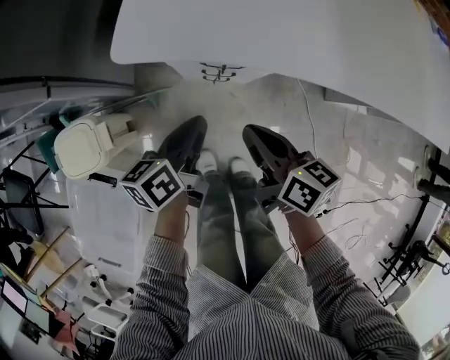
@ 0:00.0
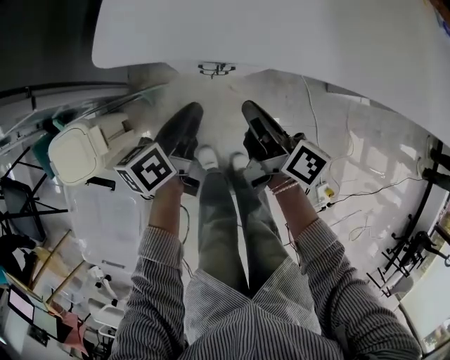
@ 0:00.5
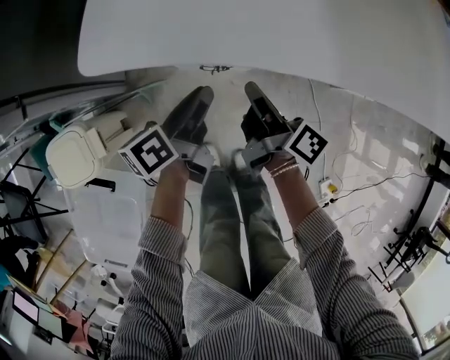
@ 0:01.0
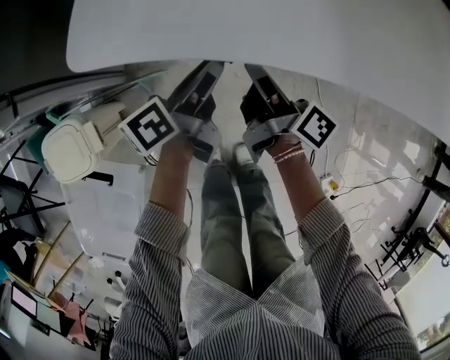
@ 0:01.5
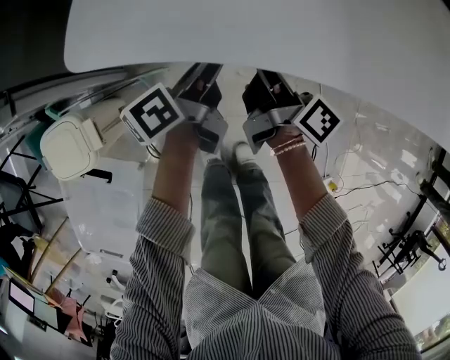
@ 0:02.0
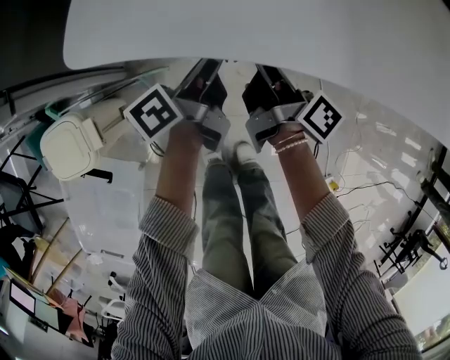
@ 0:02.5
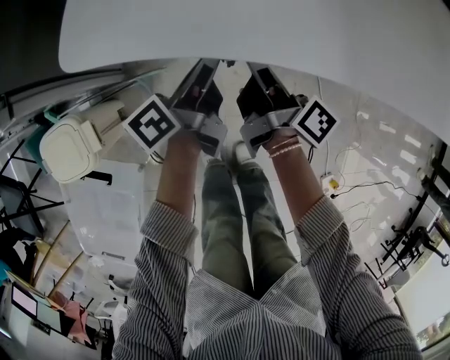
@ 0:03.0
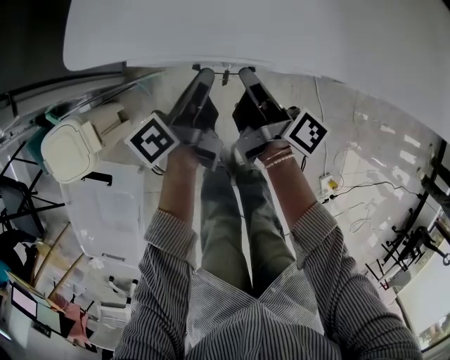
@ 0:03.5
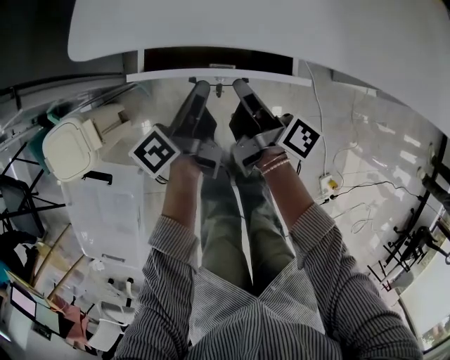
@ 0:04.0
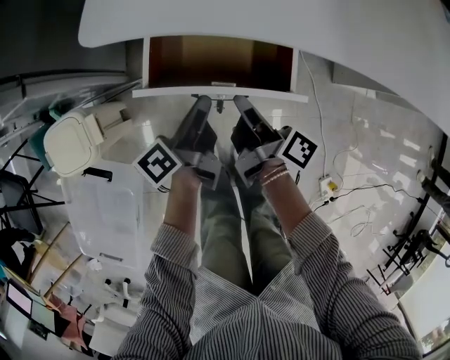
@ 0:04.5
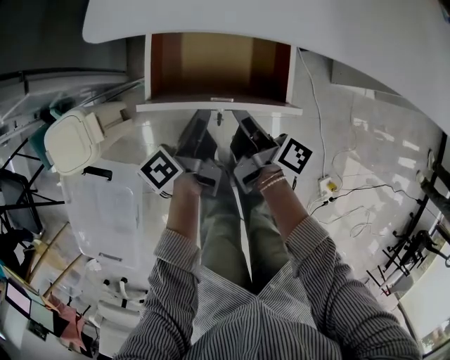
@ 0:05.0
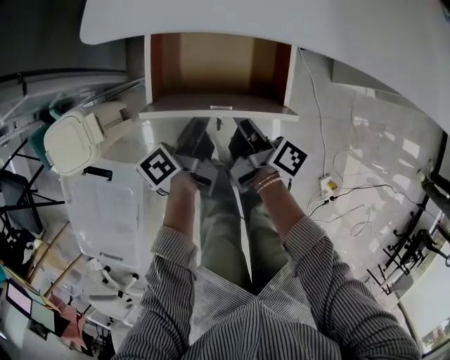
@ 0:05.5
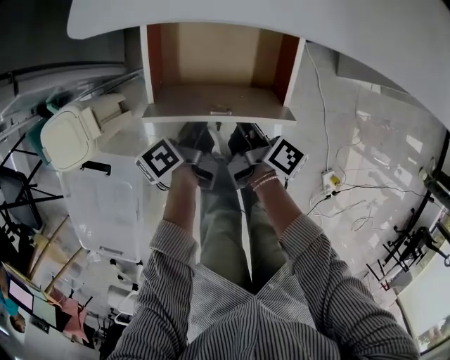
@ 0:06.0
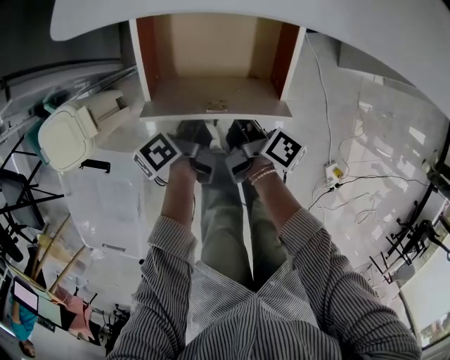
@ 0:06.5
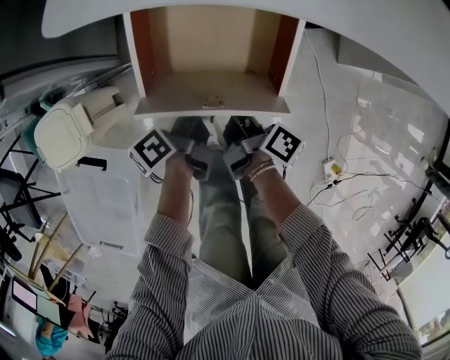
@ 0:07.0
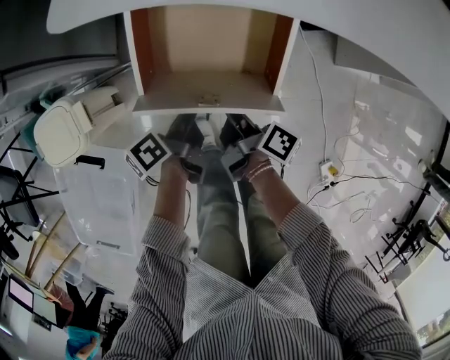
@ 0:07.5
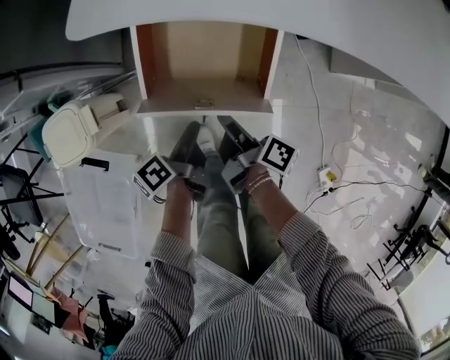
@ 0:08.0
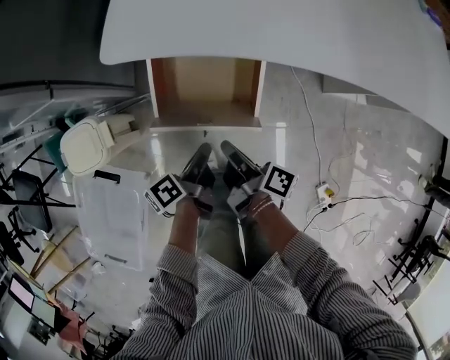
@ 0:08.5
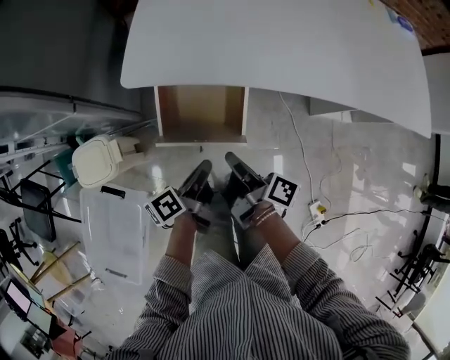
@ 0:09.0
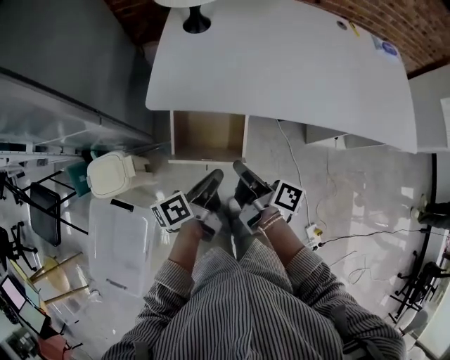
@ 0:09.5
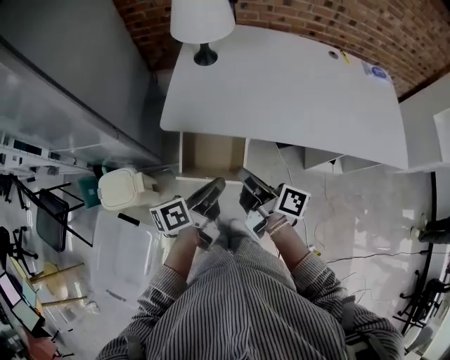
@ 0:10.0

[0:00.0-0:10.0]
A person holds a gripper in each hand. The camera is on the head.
0:00.0 to 0:02.0: Both grippers move forward and downward, some 15 cm. The left gripper turns by roughly 20 degrees, and opens its fingers. The right gripper turns by some 40 degrees, and opens its fingers.
0:02.0 to 0:04.0: Both grippers move backward, roughly 5 cm.
0:04.0 to 0:06.0: The two grippers go some 10 cm backward and downward.
0:06.0 to 0:08.0: The left gripper shifts roughly 5 cm backward.
0:08.0 to 0:10.0: Both grippers travel together upward, some 40 cm. The left gripper turns by some 30 degrees. The right gripper swivels roughly 30 degrees.

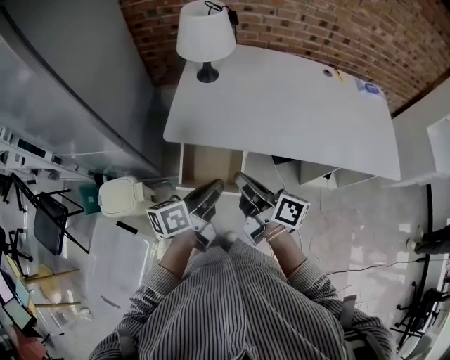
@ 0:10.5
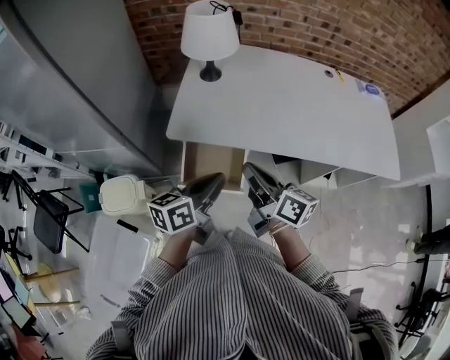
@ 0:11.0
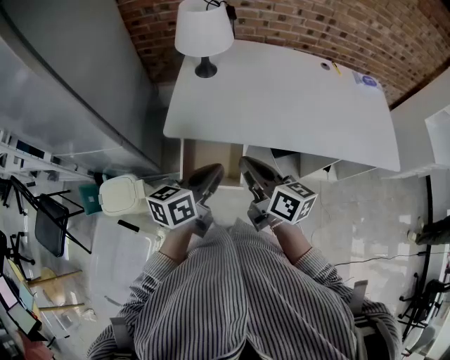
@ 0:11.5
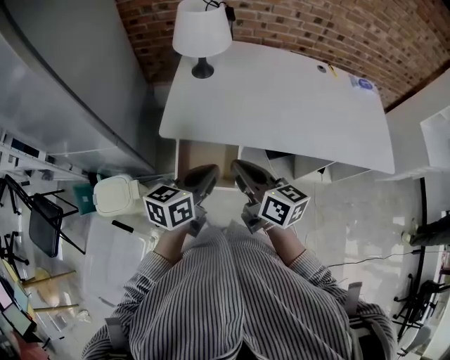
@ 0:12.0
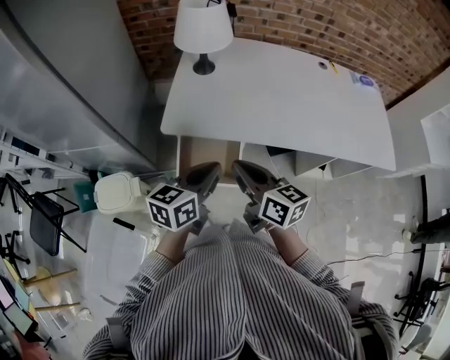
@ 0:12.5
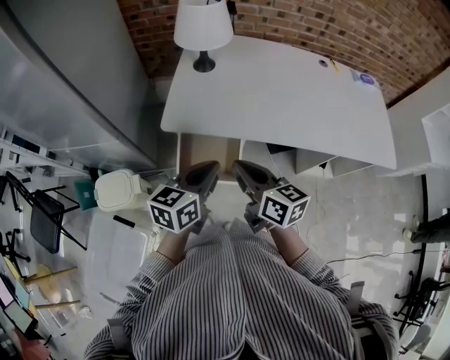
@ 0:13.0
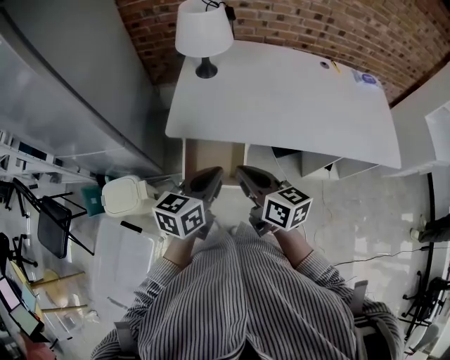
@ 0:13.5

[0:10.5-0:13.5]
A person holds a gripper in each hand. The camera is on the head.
0:10.5 to 0:12.0: The right gripper swivels approximately 30 degrees, while the left gripper changes its angle by some 30 degrees.
0:12.0 to 0:13.5: The grippers stay close to where they were, moving slightly.

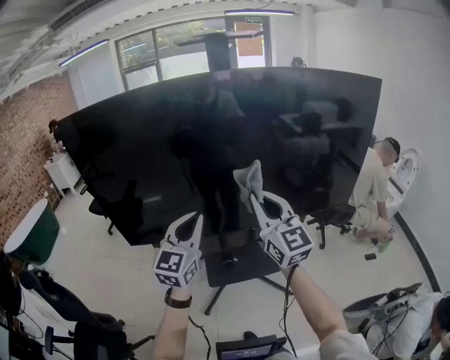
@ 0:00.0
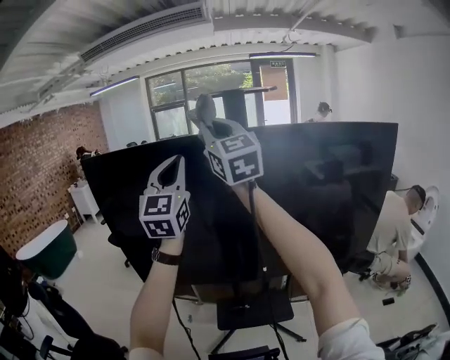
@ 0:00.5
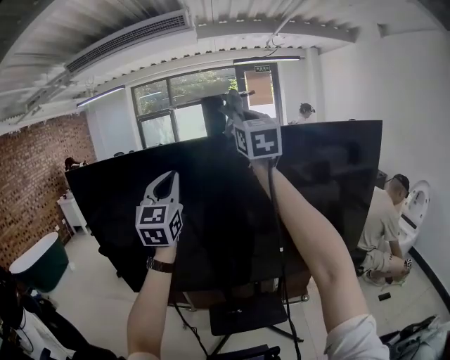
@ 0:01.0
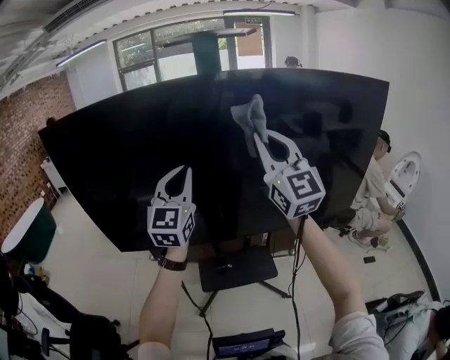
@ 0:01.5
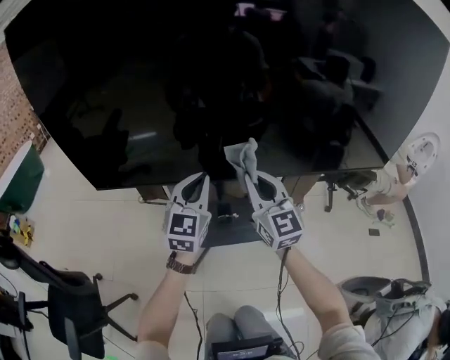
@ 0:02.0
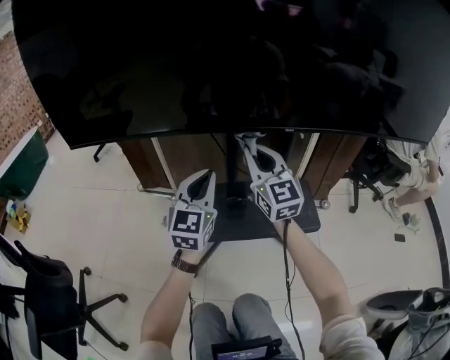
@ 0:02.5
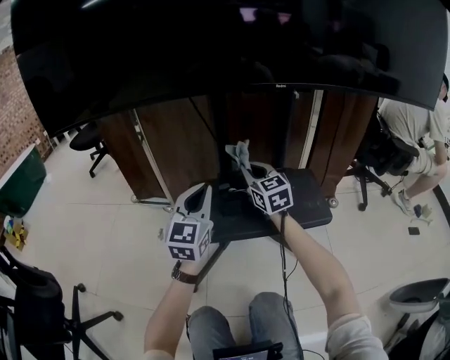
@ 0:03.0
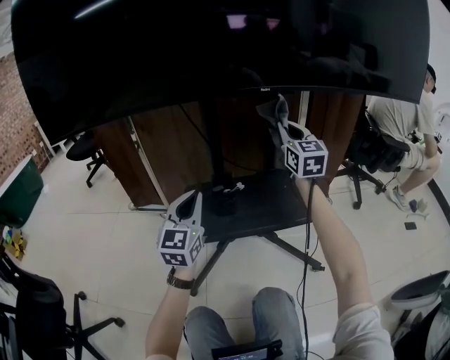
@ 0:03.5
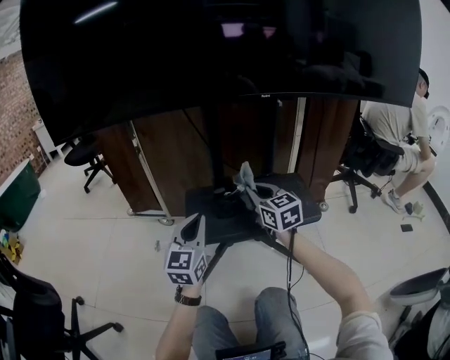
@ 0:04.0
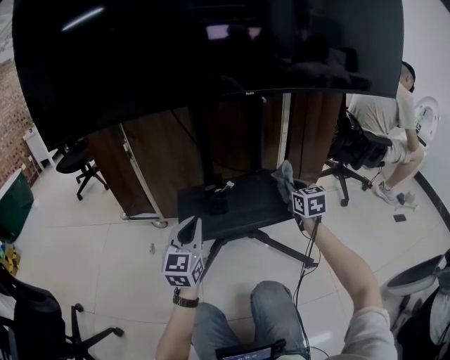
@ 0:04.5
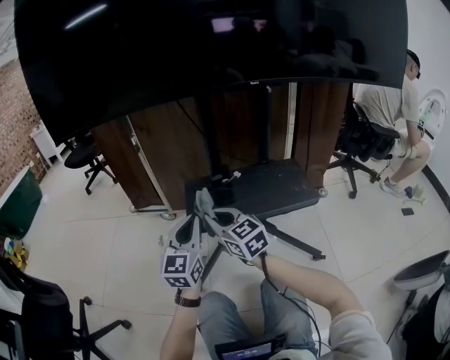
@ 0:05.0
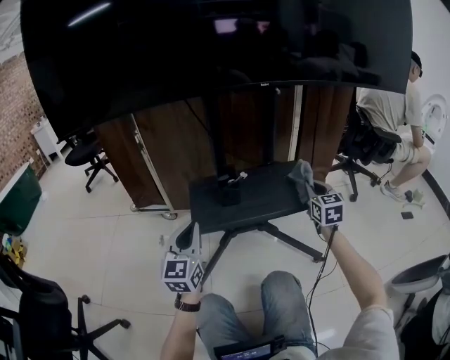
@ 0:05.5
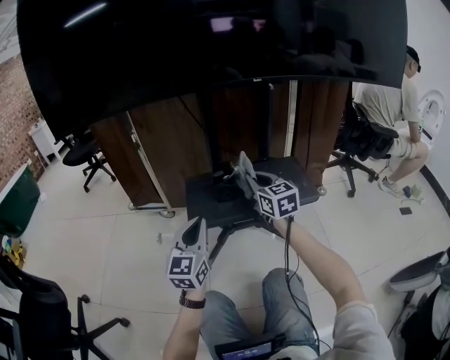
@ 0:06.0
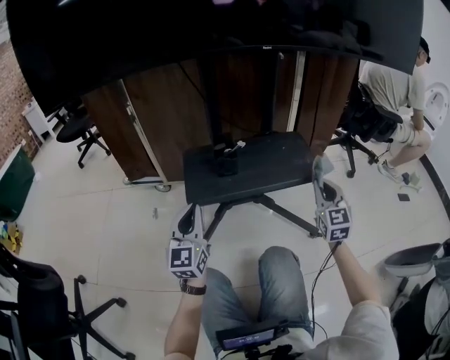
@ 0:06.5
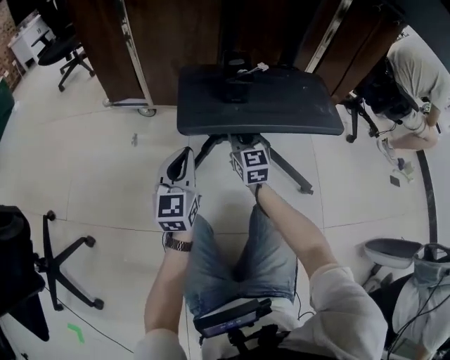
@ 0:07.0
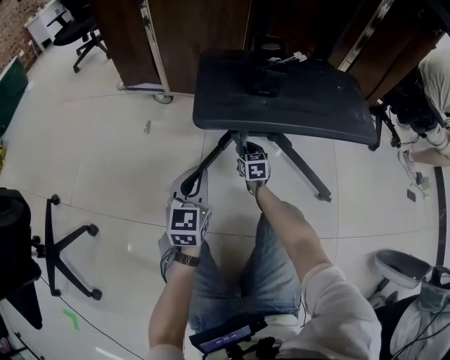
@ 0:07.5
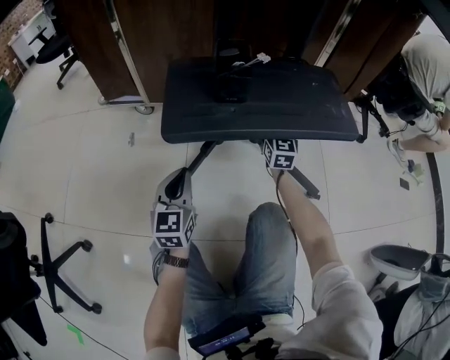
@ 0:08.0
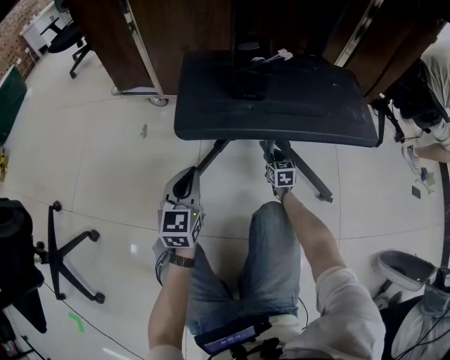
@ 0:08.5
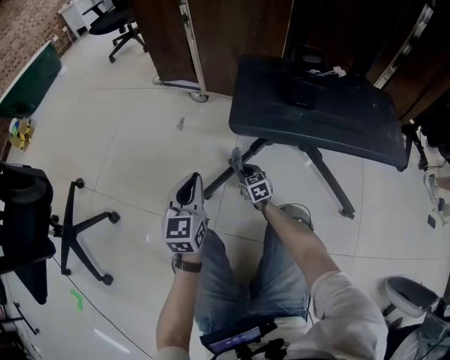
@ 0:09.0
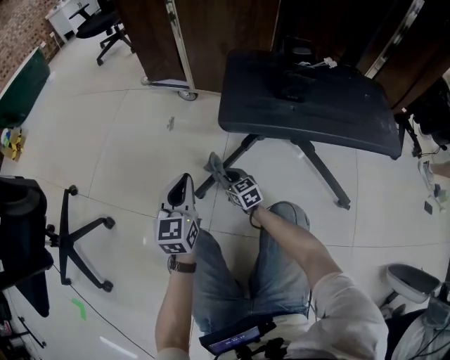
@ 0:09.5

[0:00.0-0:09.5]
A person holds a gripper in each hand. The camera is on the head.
0:00.0 to 0:02.0: Both grippers travel together downward and forward, approximately 40 cm.
0:02.0 to 0:04.0: The left gripper shifts roughly 50 cm downward, while the right gripper swings up and down, roughly 50 cm each way, with 2 reversals.
0:04.0 to 0:05.5: The right gripper moves left and right over about 35 cm, changing direction 2 times, and swivels approximately 30 degrees. Meanwhile the left gripper travels backward by some 5 cm.
0:05.5 to 0:07.5: The left gripper heads downward, covering some 25 cm, while the right gripper goes approximately 50 cm downward and to the left, and turns by roughly 30 degrees.
0:07.5 to 0:09.5: The right gripper moves approximately 15 cm upward and comes back, and turns by some 30 degrees, while the left gripper changes place by approximately 10 cm.

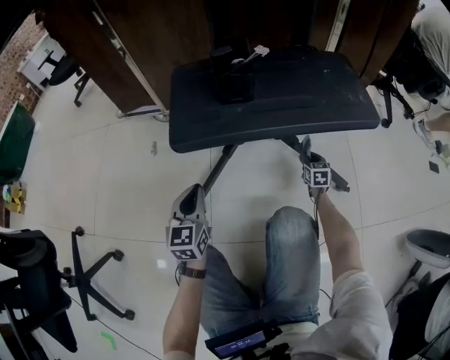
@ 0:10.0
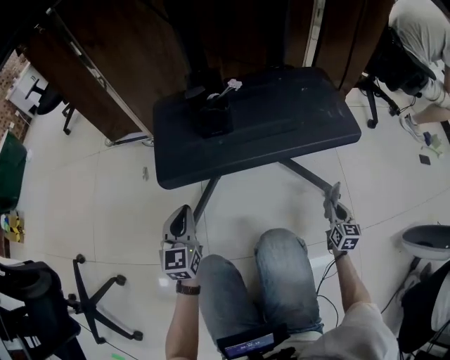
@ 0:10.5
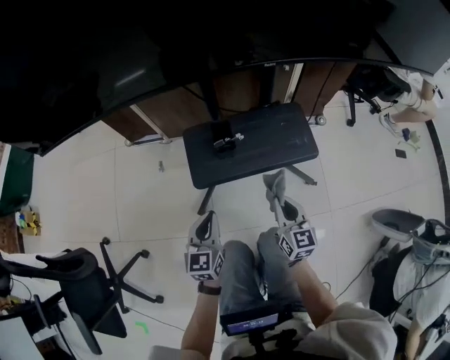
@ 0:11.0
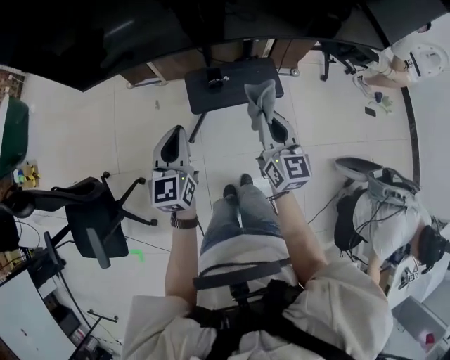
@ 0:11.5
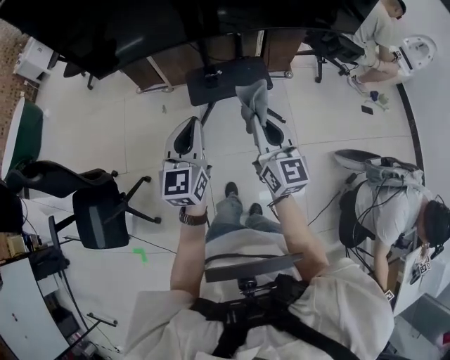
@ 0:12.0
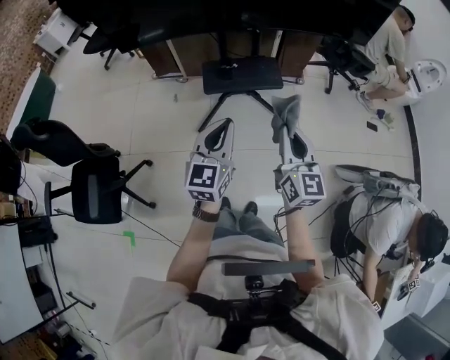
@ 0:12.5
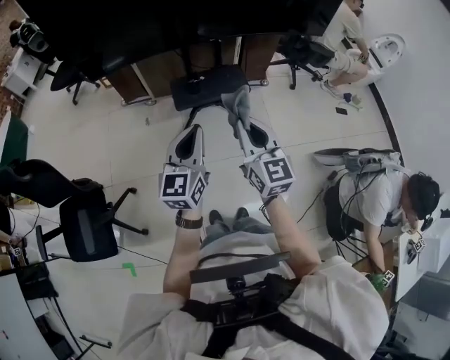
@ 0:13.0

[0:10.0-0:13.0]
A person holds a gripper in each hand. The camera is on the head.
0:10.0 to 0:11.5: Both grippers move upward, some 90 cm. The right gripper tips its fingers upward by roughly 30 degrees.
0:11.5 to 0:13.0: The right gripper heads backward and upward, covering some 35 cm. The left gripper shifts approximately 30 cm backward.
